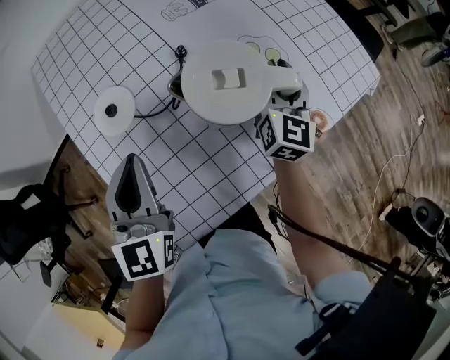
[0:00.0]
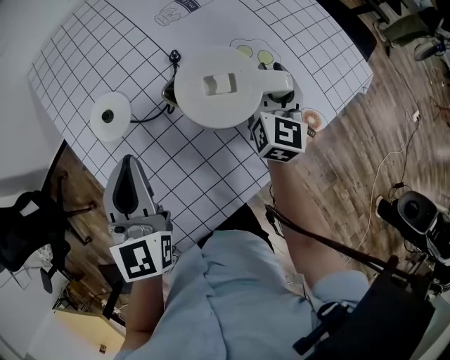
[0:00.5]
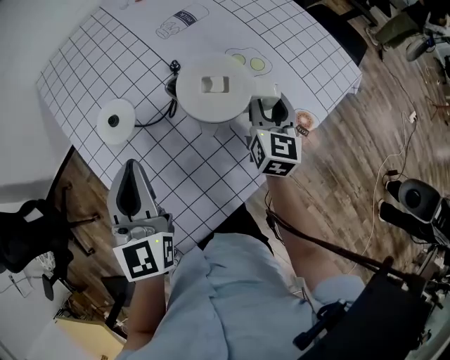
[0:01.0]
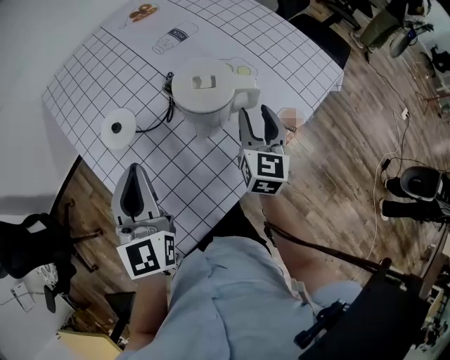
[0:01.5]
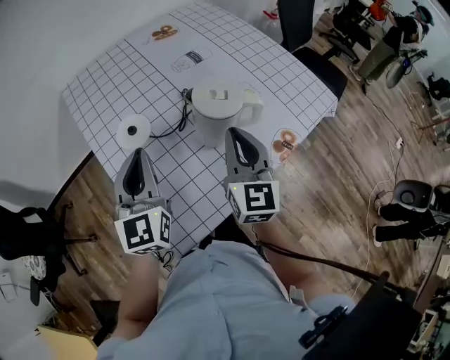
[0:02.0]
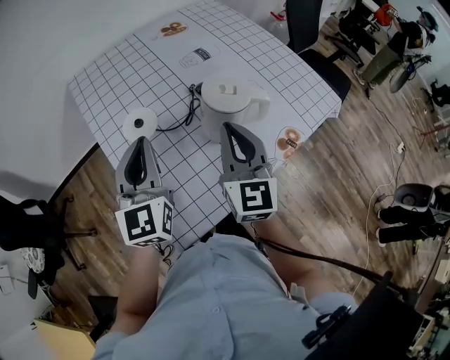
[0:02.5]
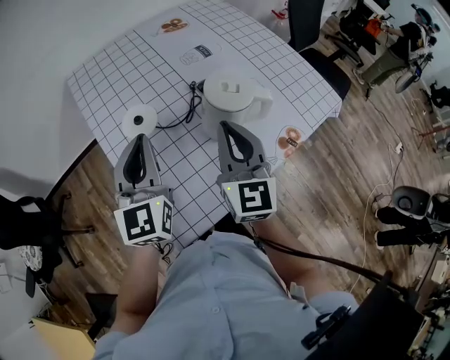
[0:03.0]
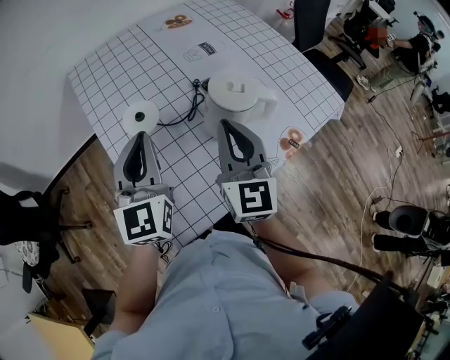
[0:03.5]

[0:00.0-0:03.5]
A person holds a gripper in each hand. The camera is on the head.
0:00.0 to 0:02.0: The left gripper moves upward, some 5 cm; the right gripper moves backward, upward and to the left, roughly 25 cm, and opens and closes again.
0:02.0 to 0:03.5: The right gripper goes about 5 cm to the left.

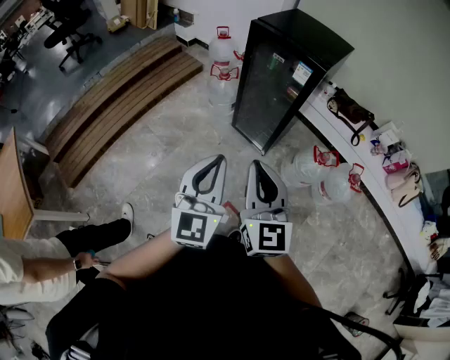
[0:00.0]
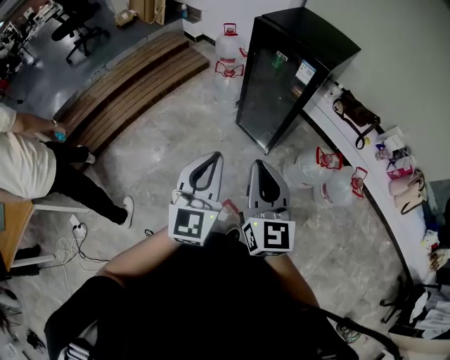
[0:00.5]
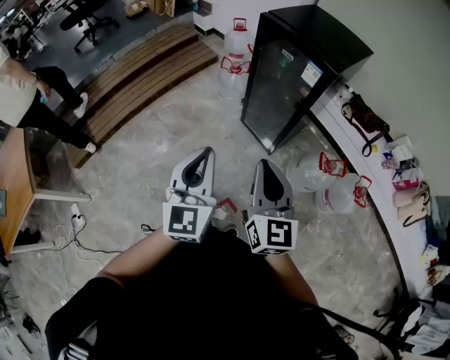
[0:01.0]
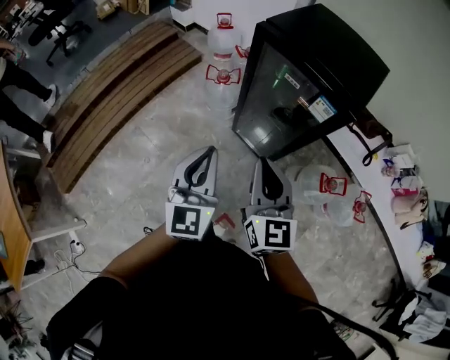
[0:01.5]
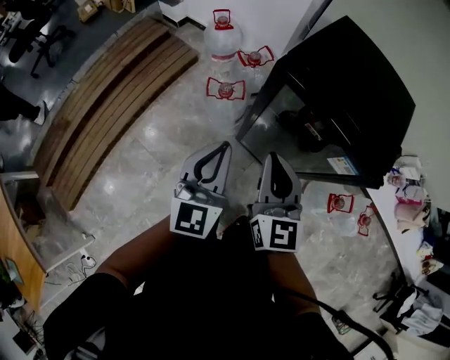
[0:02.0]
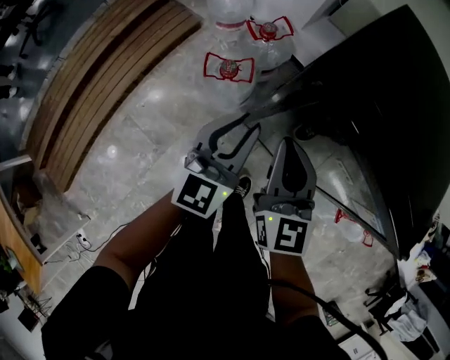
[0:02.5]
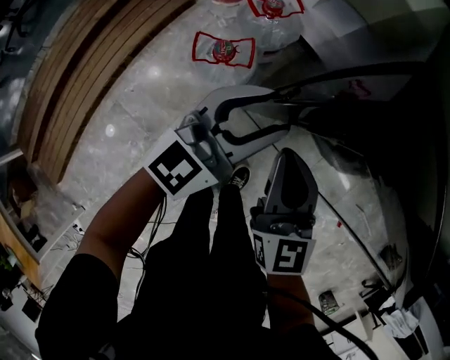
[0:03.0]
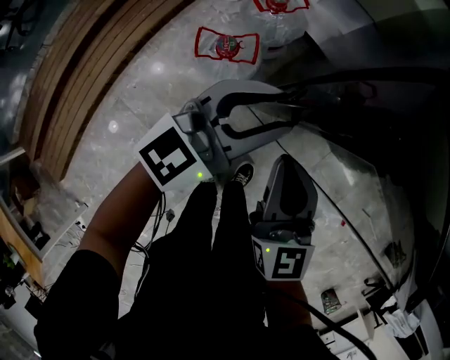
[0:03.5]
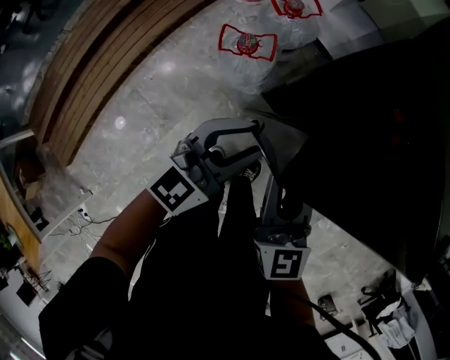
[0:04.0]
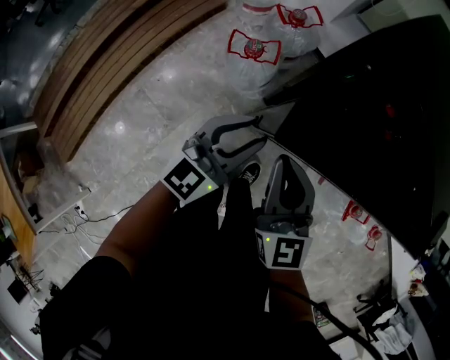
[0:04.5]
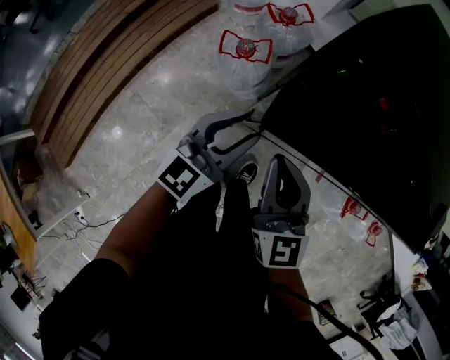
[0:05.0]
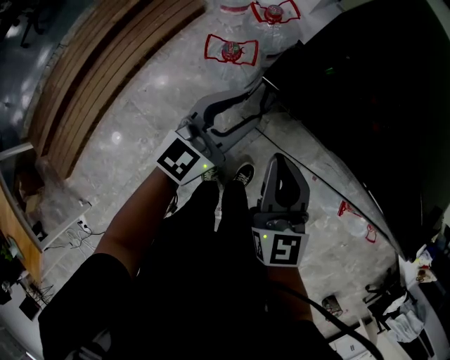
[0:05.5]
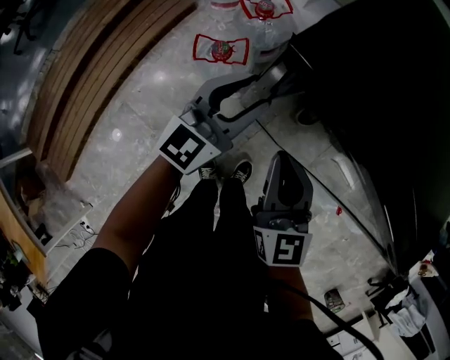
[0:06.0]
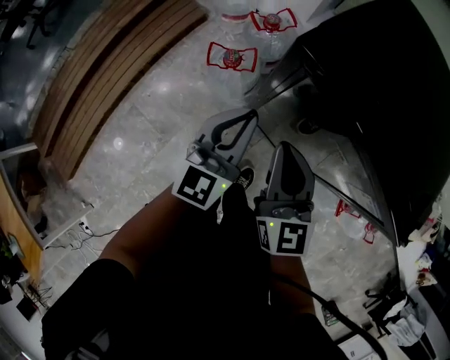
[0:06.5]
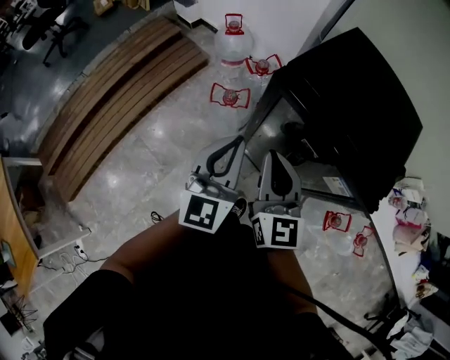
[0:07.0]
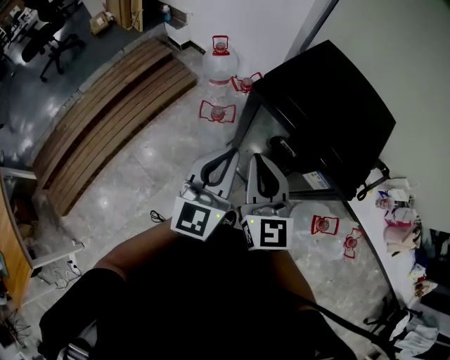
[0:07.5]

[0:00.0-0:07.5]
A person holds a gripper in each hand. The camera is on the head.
0:00.0 to 0:02.0: The two grippers travel together, forward, roughly 50 cm.
0:02.0 to 0:04.0: The left gripper goes roughly 20 cm downward and forward, swivels some 30 degrees, and opens up. The right gripper heads downward, covering roughly 20 cm.
0:04.0 to 0:05.5: The grippers stay close to where they were, moving slightly.
0:05.5 to 0:07.5: The left gripper goes about 25 cm upward and backward, changes its angle by about 20 degrees, and closes, while the right gripper shifts approximately 20 cm upward.

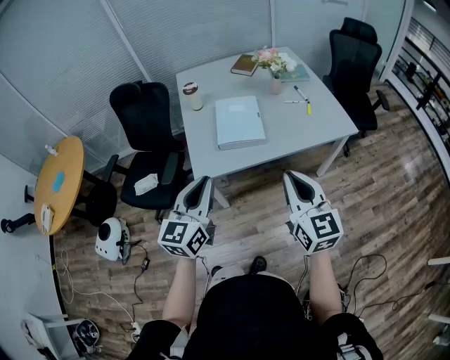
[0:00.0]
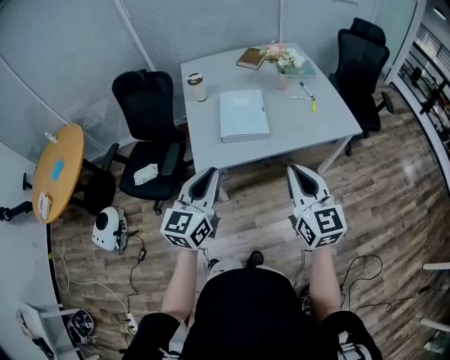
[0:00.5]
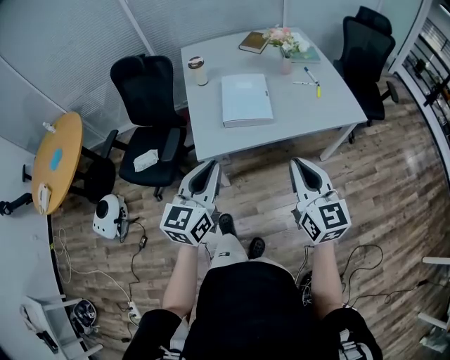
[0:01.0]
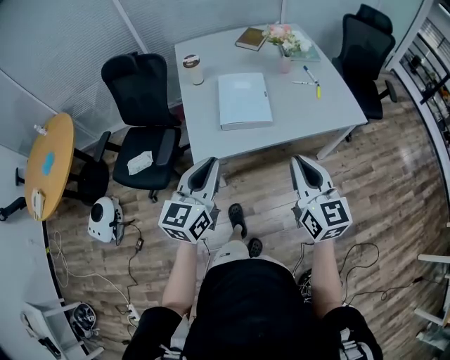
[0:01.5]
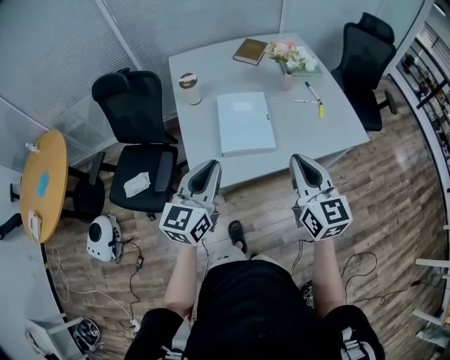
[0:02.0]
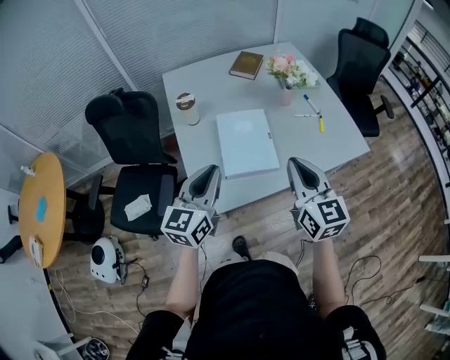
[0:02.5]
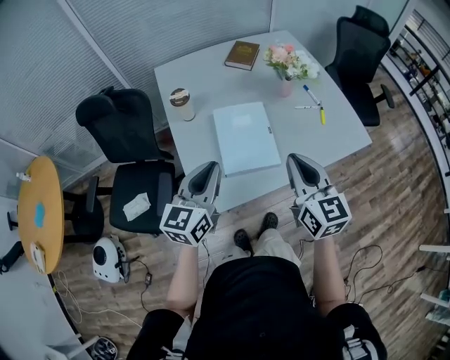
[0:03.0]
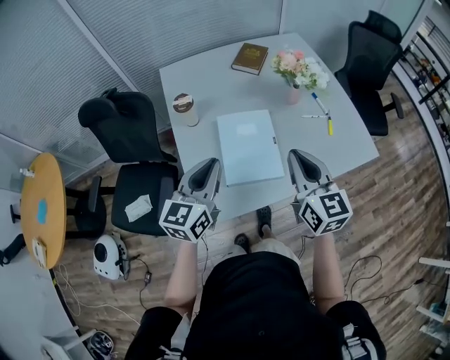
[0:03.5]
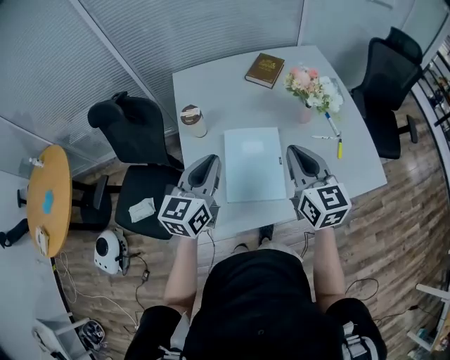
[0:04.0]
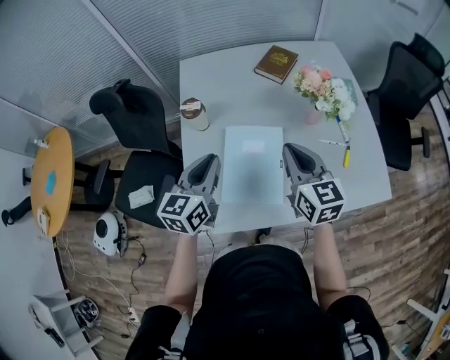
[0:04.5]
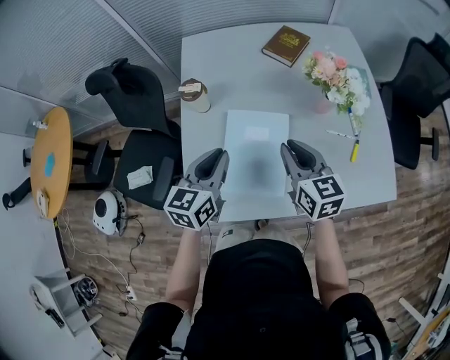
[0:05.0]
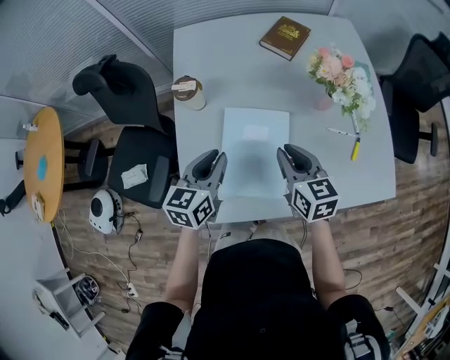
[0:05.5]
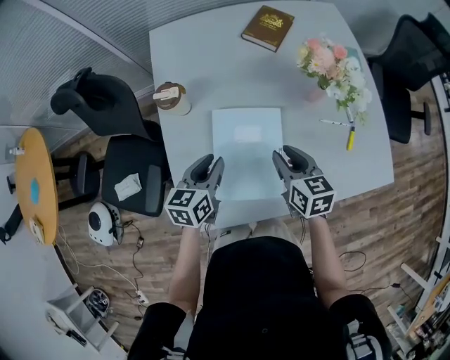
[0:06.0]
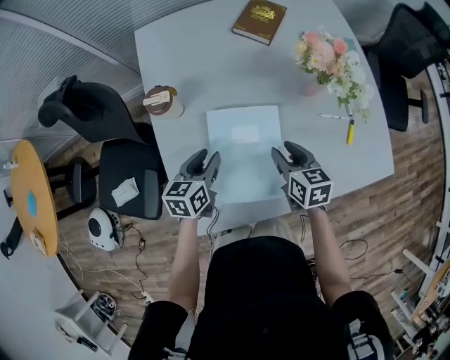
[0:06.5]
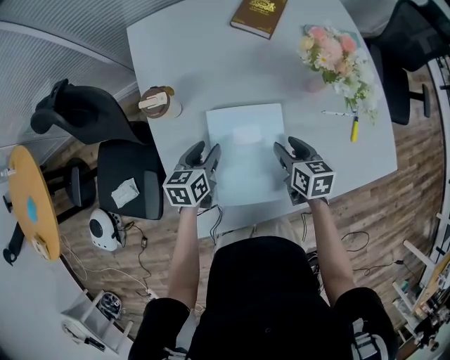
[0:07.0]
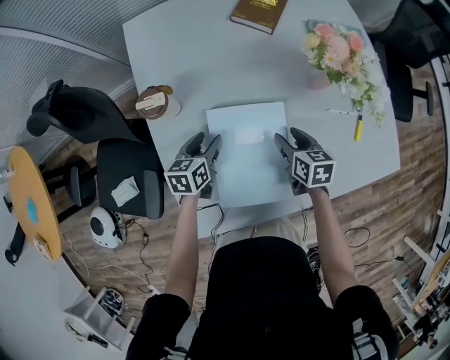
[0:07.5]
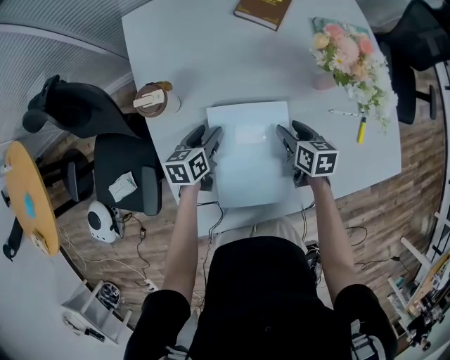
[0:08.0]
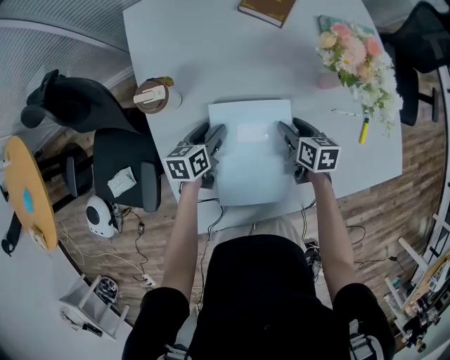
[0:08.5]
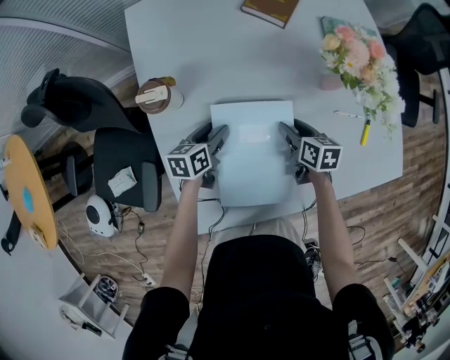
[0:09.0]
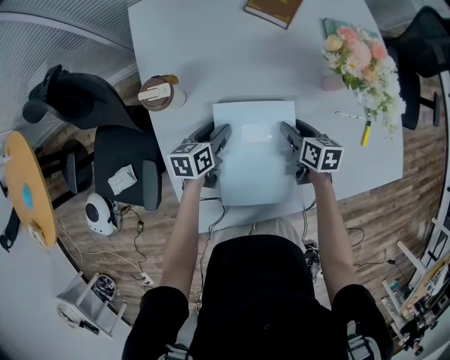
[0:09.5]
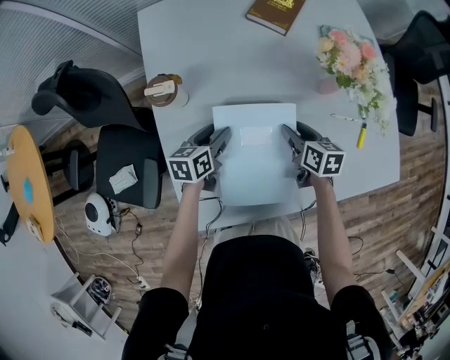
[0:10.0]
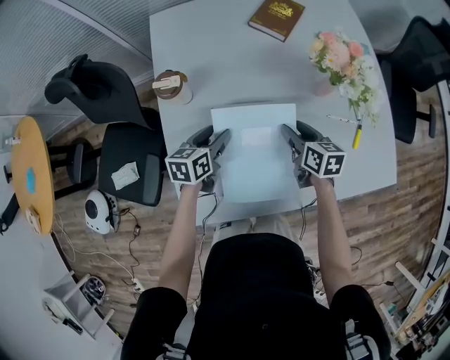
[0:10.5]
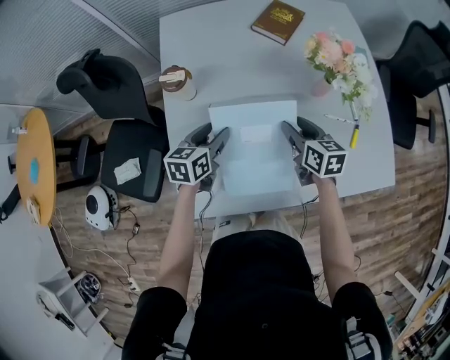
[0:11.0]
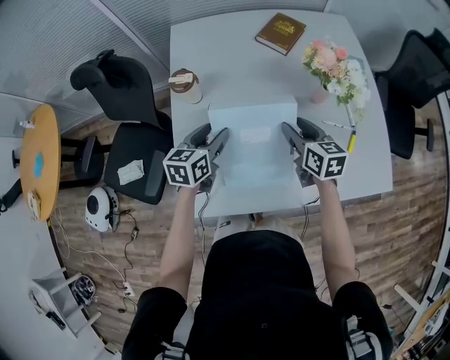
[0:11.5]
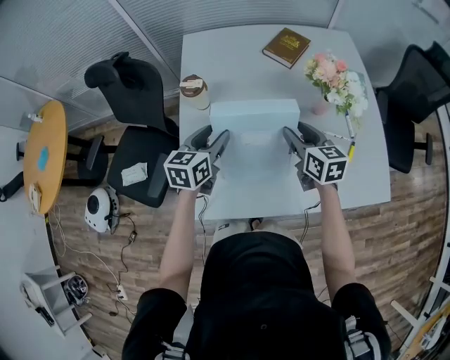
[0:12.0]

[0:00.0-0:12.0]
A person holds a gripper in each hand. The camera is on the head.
0:00.0 to 0:02.0: Both grippers travel together forward, approximately 20 cm.
0:02.0 to 0:04.0: The grippers both shift forward by some 25 cm.
0:04.0 to 0:06.0: The two grippers go roughly 25 cm downward and forward. The right gripper swivels approximately 30 degrees, and opens its fingers. Meanwhile the left gripper changes its angle by about 30 degrees.
0:06.0 to 0:08.0: Both grippers move downward and forward, approximately 20 cm. The right gripper opens up; the left gripper opens.
0:08.0 to 0:10.0: The grippers stay close to where they were, moving slightly.
0:10.0 to 0:12.0: The right gripper travels upward by roughly 15 cm, and turns by approximately 30 degrees. Meanwhile the left gripper heads upward and backward, covering about 20 cm, and swivels some 20 degrees.

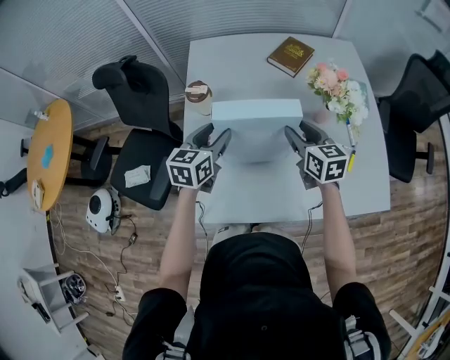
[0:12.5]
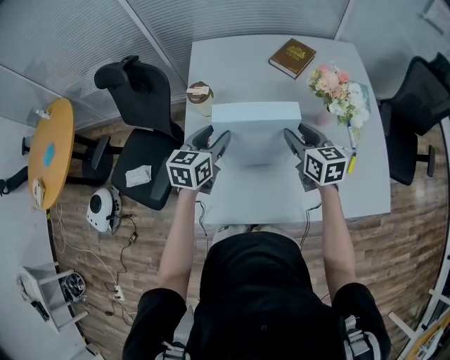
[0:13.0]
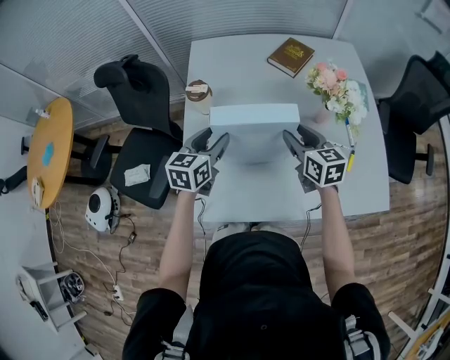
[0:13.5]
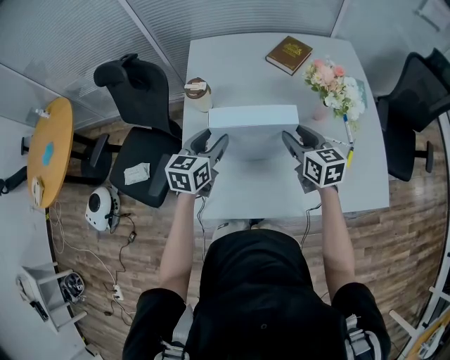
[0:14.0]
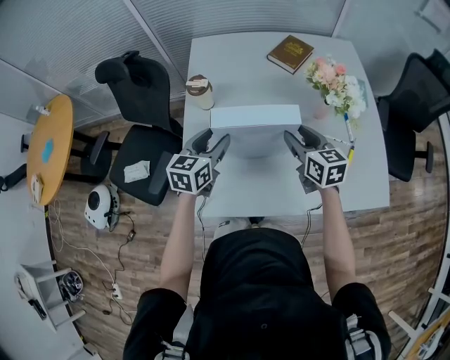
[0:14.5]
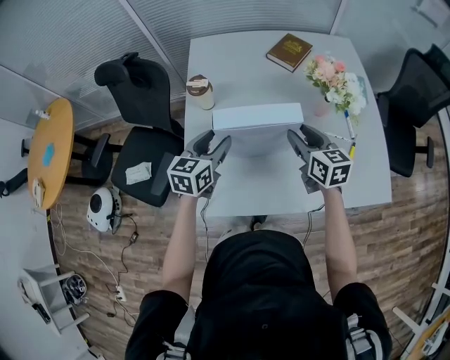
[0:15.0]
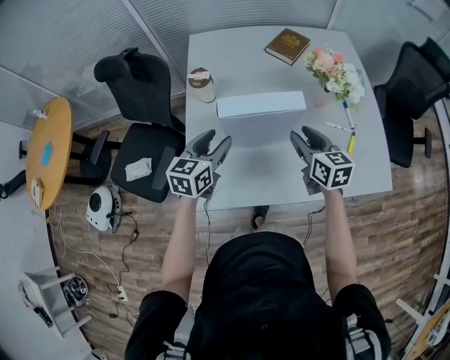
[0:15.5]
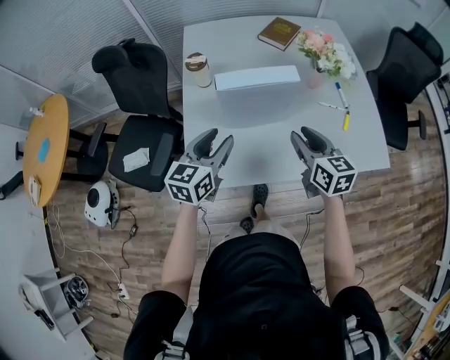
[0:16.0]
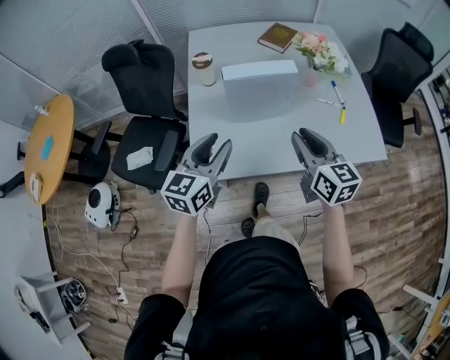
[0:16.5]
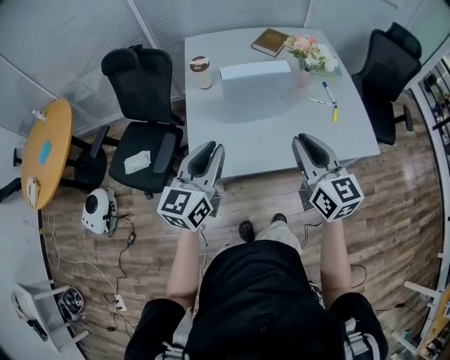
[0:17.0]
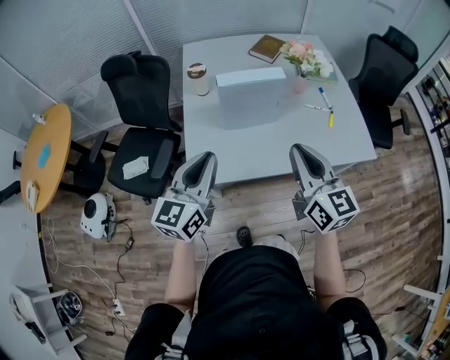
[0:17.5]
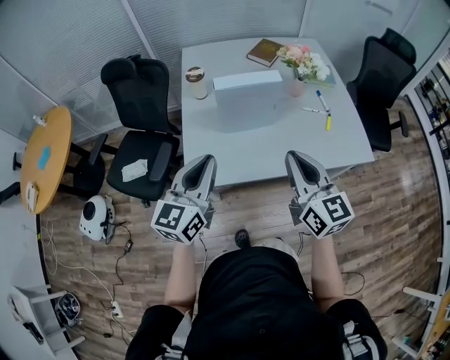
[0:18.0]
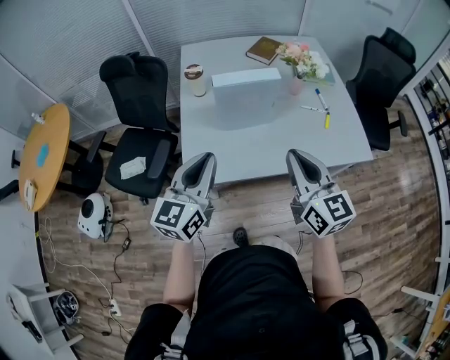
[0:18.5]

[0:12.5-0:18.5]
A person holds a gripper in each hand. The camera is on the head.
0:12.5 to 0:14.5: The grippers stay close to where they were, moving slightly.
0:14.5 to 0:16.5: Both grippers move backward, roughly 25 cm. The right gripper closes.
0:16.5 to 0:18.5: The grippers both shift backward and upward by about 10 cm. The left gripper closes its fingers, while the right gripper closes.
